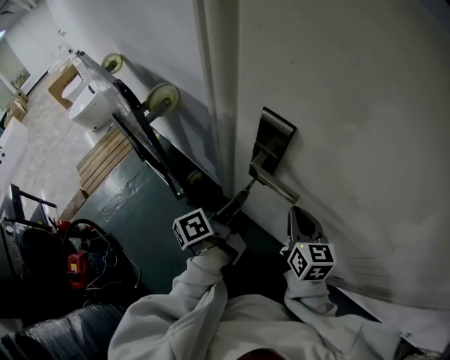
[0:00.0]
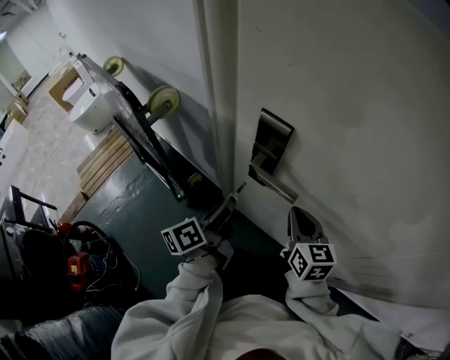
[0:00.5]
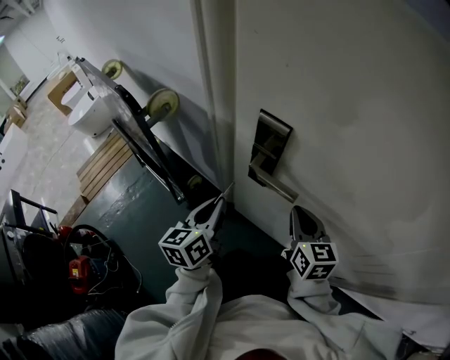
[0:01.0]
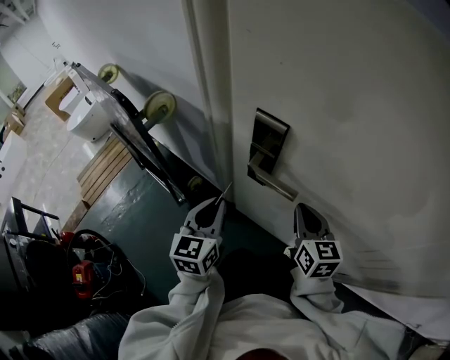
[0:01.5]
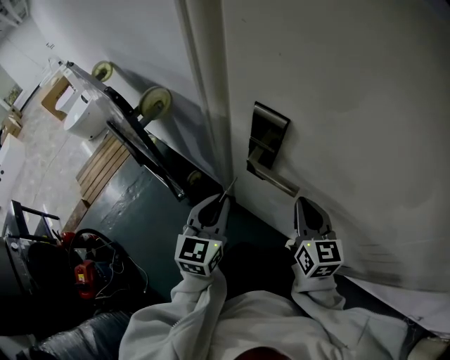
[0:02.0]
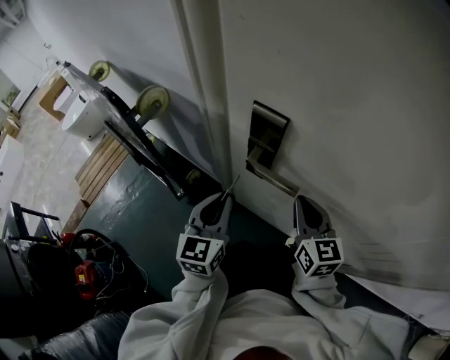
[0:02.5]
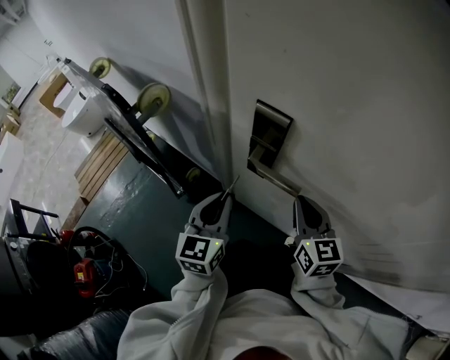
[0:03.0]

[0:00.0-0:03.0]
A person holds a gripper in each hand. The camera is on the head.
0.0 to 1.5 s: The left gripper goes approximately 5 cm to the left, and twists roughly 70 degrees clockwise, seen from behind.
1.5 to 3.0 s: There are only small adjustments of the grippers.

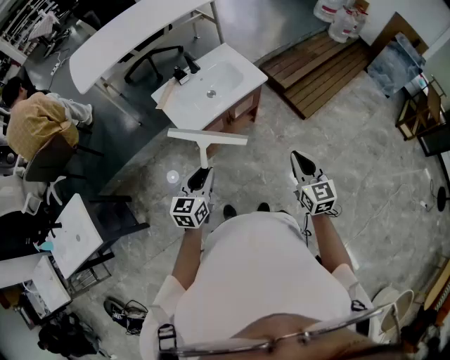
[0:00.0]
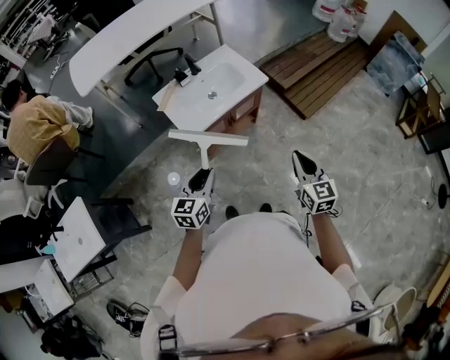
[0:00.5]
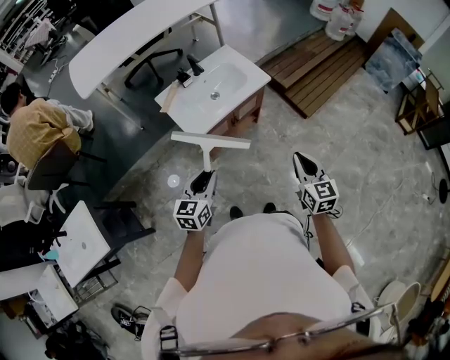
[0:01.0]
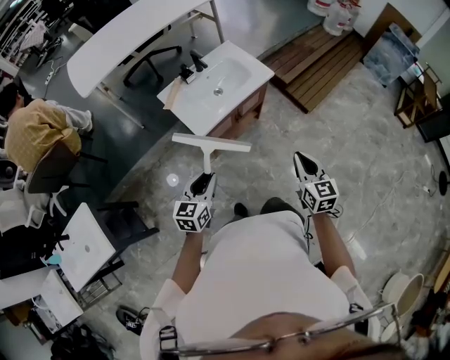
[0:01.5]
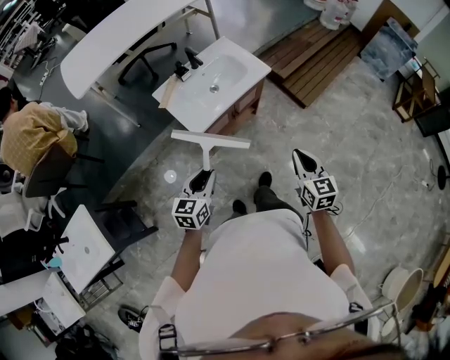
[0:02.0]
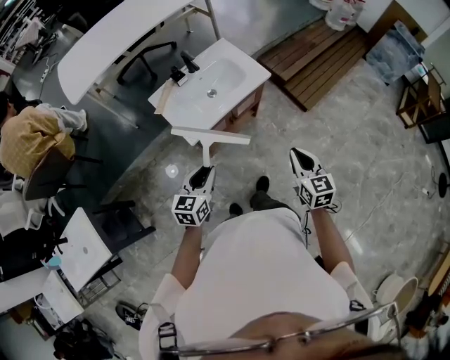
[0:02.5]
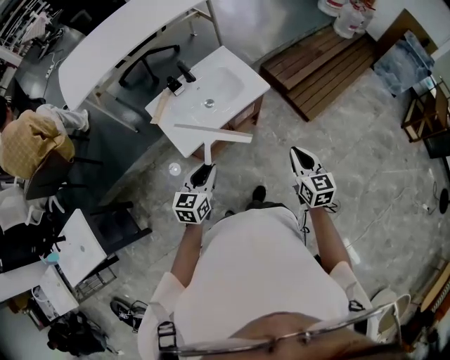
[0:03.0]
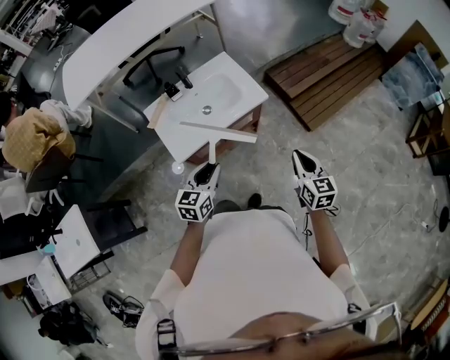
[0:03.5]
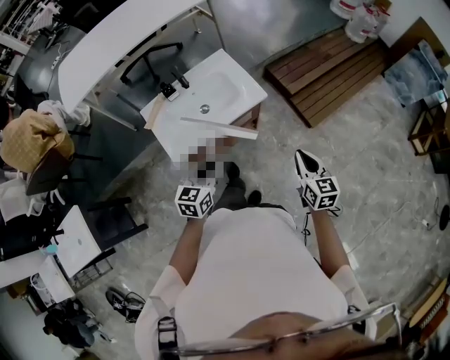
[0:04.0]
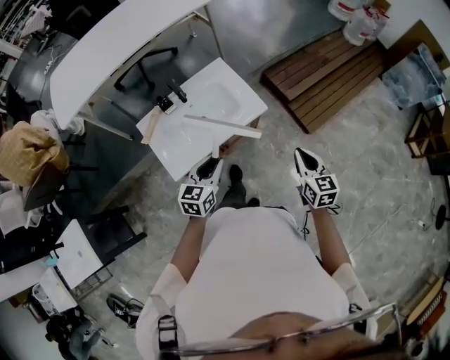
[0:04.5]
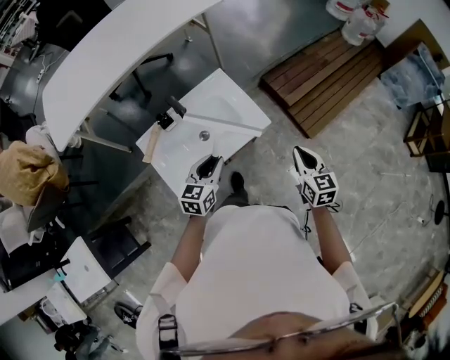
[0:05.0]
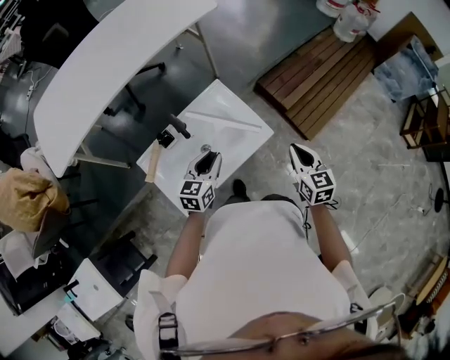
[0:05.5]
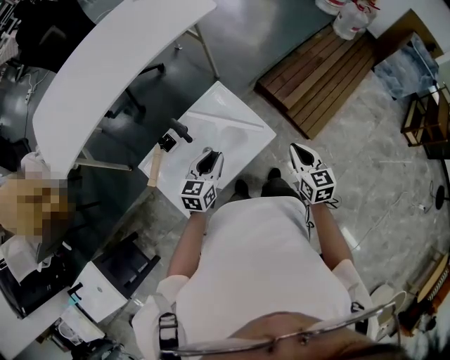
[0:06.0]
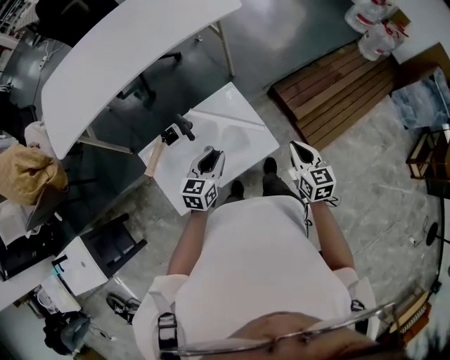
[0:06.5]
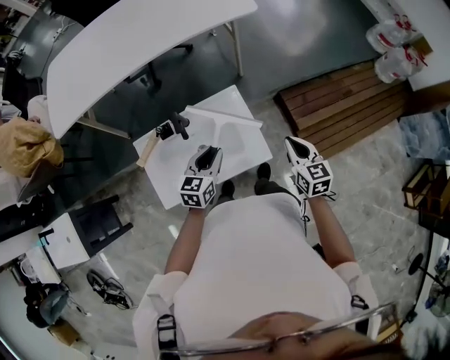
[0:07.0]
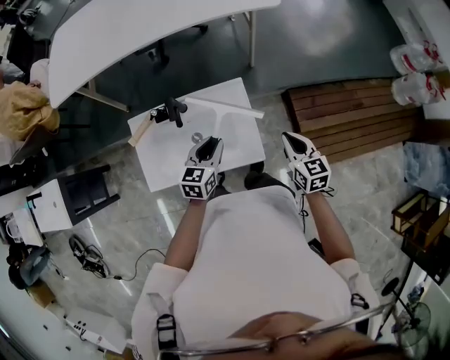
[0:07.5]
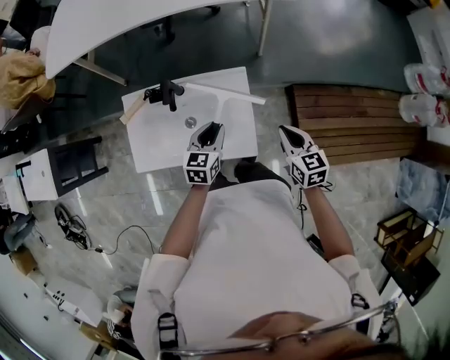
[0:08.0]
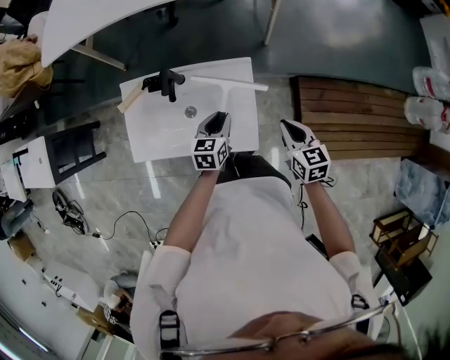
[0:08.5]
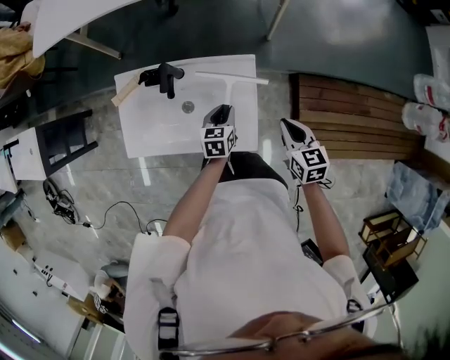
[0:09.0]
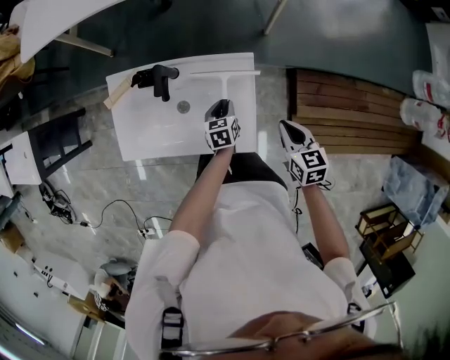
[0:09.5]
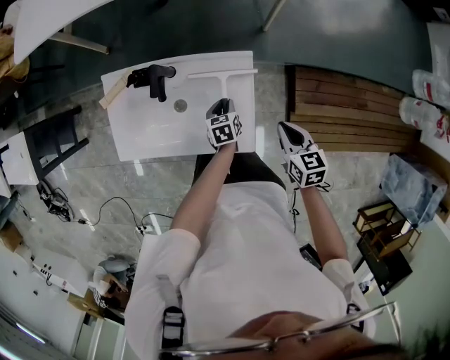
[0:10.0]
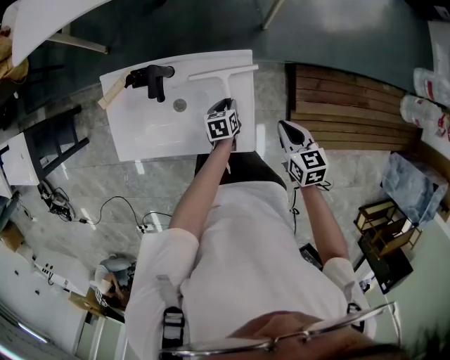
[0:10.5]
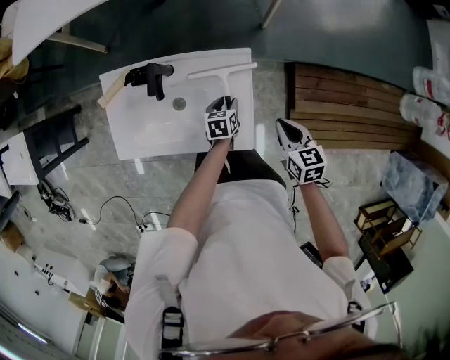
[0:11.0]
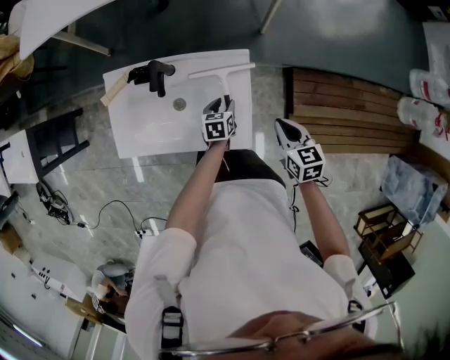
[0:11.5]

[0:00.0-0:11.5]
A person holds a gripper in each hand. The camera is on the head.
0.0 to 2.0 s: Both grippers move to the left, approximately 5 cm.
2.0 to 4.0 s: The two grippers go roughly 25 cm forward and to the right.
4.0 to 6.0 s: The two grippers go about 25 cm forward.
6.0 to 7.5 s: The left gripper changes place by roughly 10 cm, and rotates approximately 30 degrees, while the right gripper shifts by approximately 20 cm, and changes its angle by roughly 30 degrees.
7.5 to 9.5 s: The left gripper moves downward, roughly 20 cm, and rotates about 30 degrees. The right gripper moves downward and forward, about 10 cm.
9.5 to 11.5 s: There are only small adjustments of the grippers.

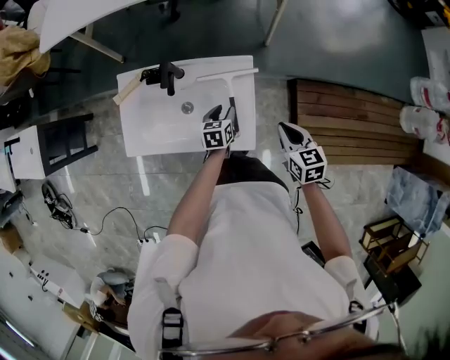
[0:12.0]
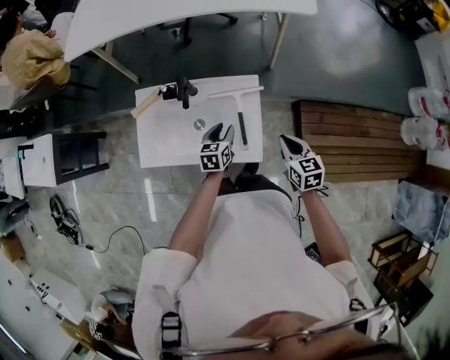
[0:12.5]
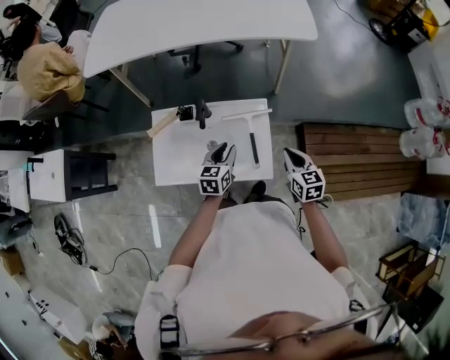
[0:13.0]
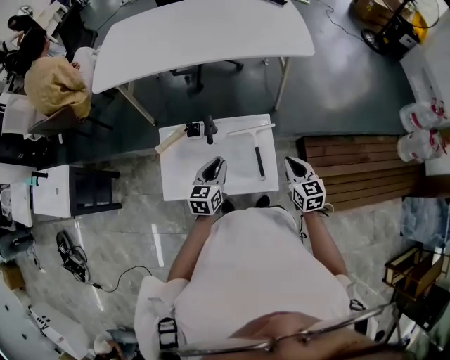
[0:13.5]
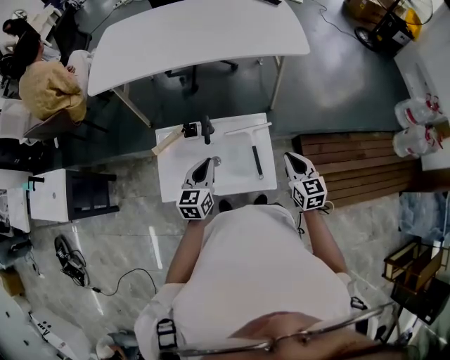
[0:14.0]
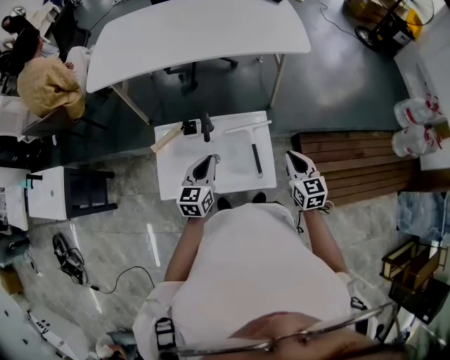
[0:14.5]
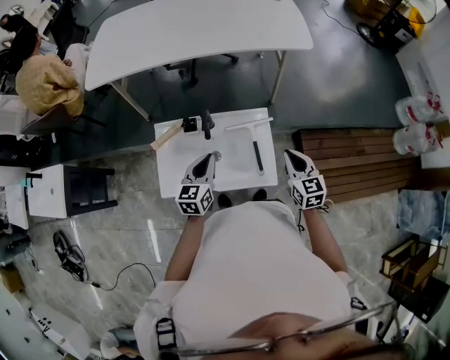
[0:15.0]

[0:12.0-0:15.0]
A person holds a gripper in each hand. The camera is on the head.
12.0 to 13.5 s: The right gripper goes approximately 10 cm upward and to the left; the left gripper travels upward and to the left by roughly 25 cm, and swivels about 30 degrees.
13.5 to 15.0 s: The grippers stay close to where they were, moving slightly.

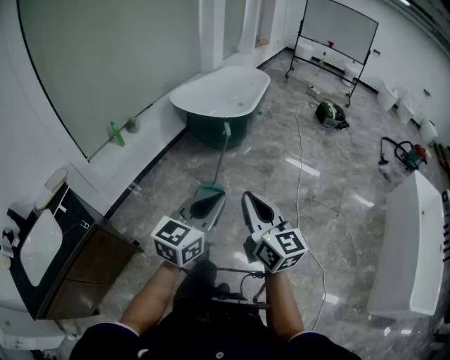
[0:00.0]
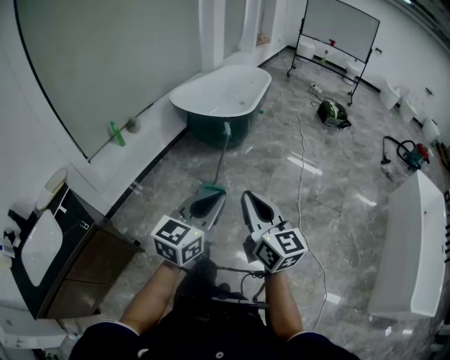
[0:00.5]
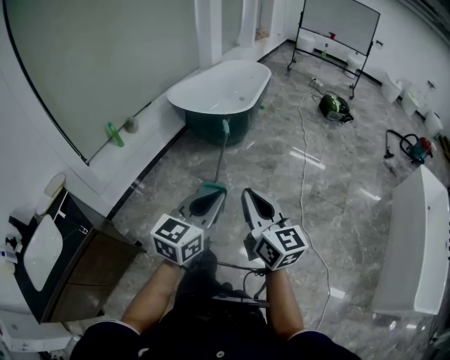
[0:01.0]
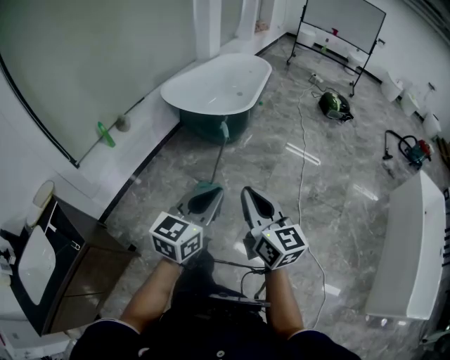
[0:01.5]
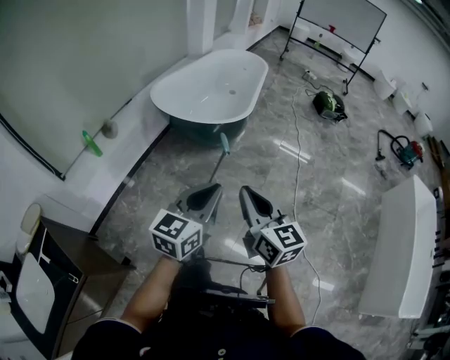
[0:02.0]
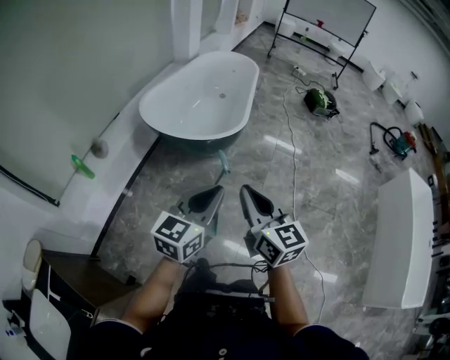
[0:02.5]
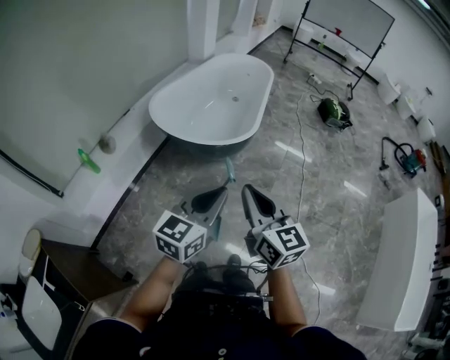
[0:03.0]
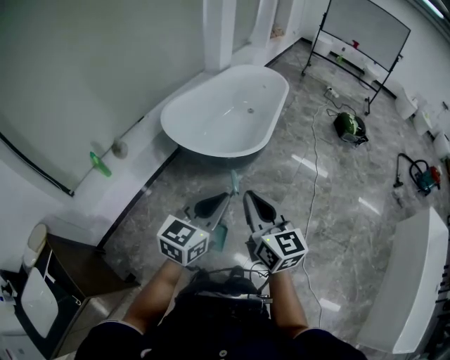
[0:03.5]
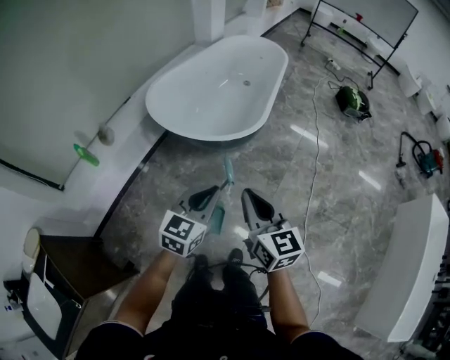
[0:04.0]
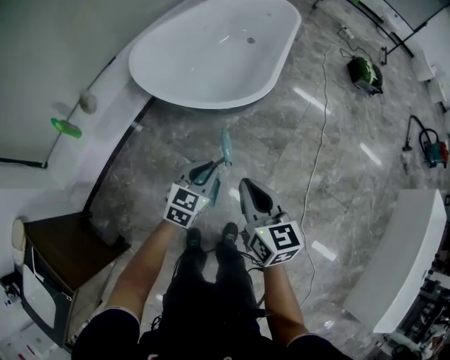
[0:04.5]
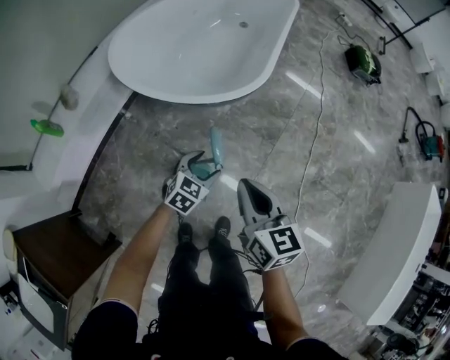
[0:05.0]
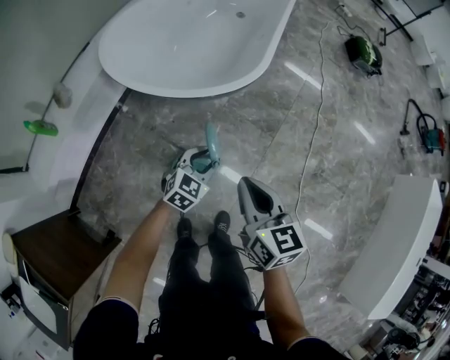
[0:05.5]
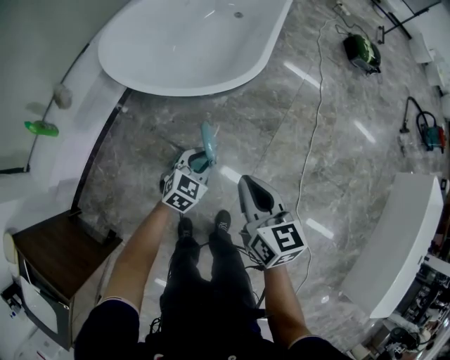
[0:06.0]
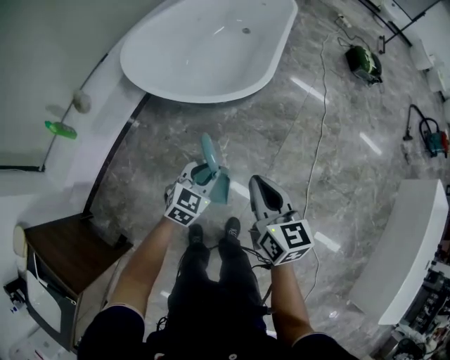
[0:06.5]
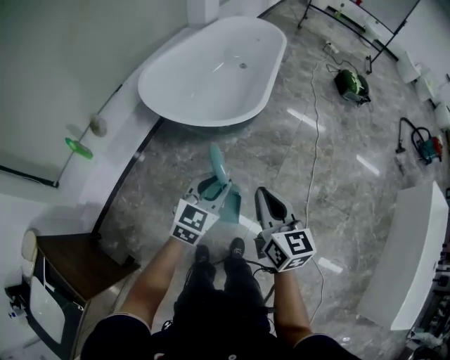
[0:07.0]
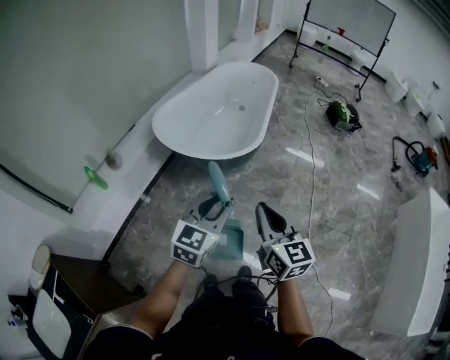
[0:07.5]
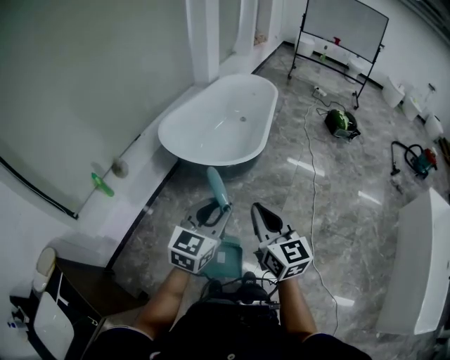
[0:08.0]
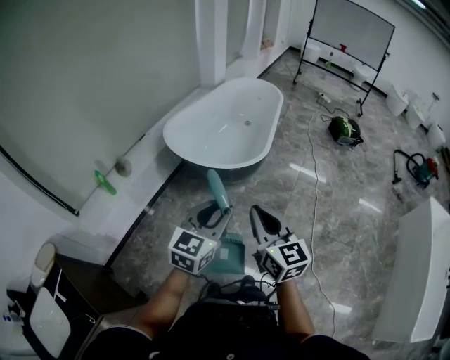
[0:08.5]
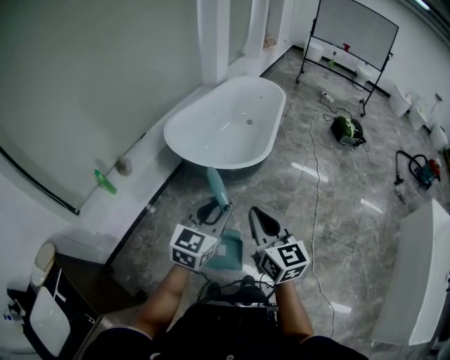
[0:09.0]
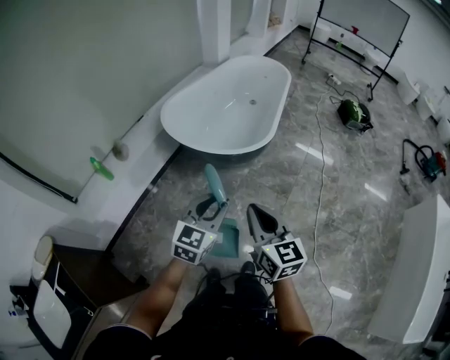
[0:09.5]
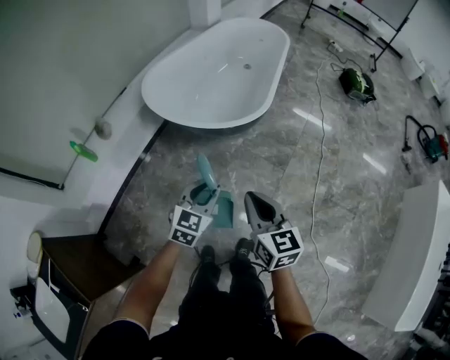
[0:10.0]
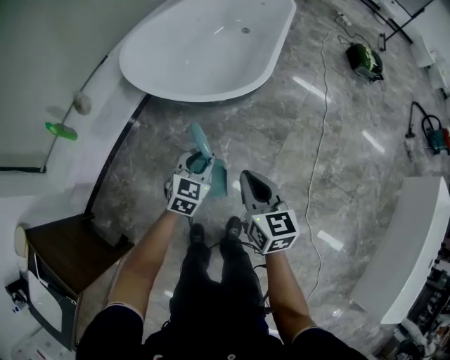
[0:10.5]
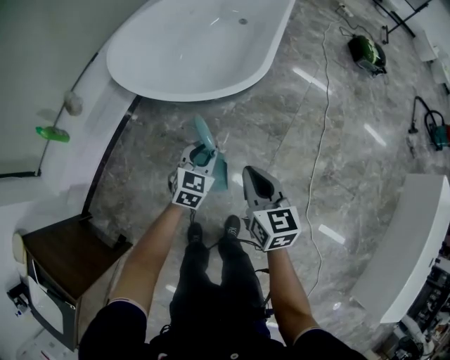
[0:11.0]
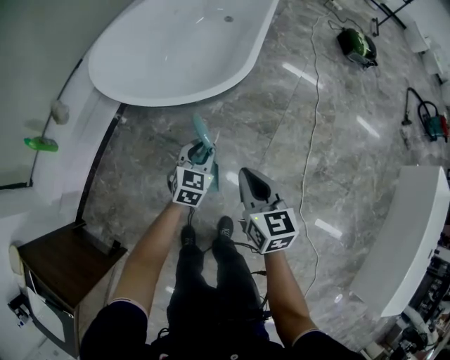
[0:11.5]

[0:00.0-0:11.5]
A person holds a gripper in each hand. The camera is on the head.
0.0 to 2.0 s: The two grippers go some 30 cm forward.
2.0 to 4.0 s: The right gripper goes about 20 cm forward, while the left gripper heads forward and downward, covering some 25 cm.
4.0 to 6.0 s: The left gripper heads downward and forward, covering approximately 30 cm, rotates approximately 20 degrees, and opens and closes again, while the right gripper goes roughly 20 cm downward and forward.
6.0 to 7.5 s: The right gripper moves upward and backward, approximately 25 cm, and changes its angle by roughly 20 degrees. The left gripper is displaced upward and backward by some 40 cm, and turns by some 20 degrees.
7.5 to 9.5 s: The right gripper ends up roughly 5 cm from where it was; the left gripper changes place by about 5 cm.
9.5 to 11.5 s: The left gripper is displaced downward and forward by about 35 cm, while the right gripper heads downward, forward and to the right, covering some 30 cm.
